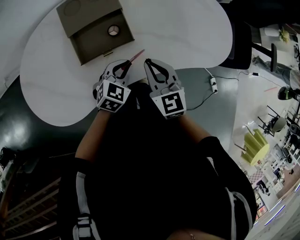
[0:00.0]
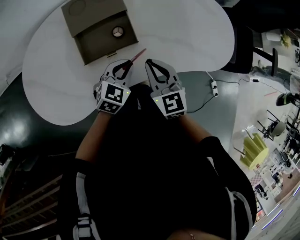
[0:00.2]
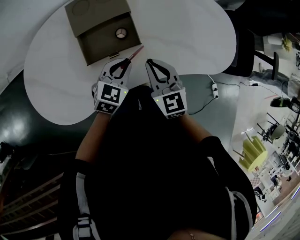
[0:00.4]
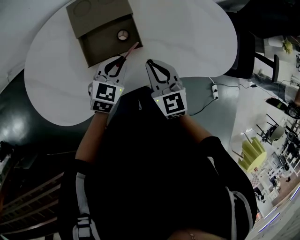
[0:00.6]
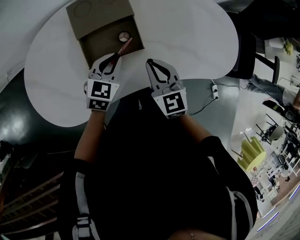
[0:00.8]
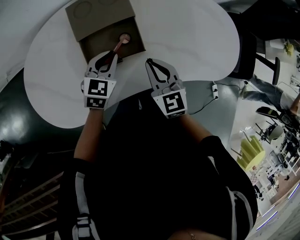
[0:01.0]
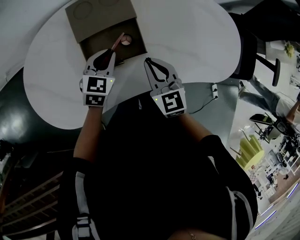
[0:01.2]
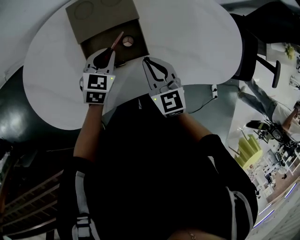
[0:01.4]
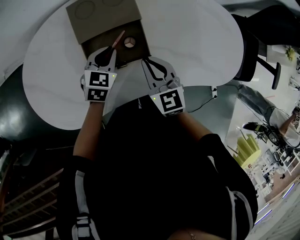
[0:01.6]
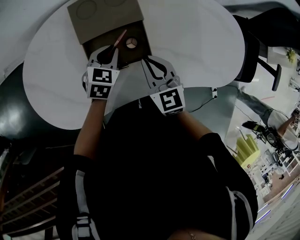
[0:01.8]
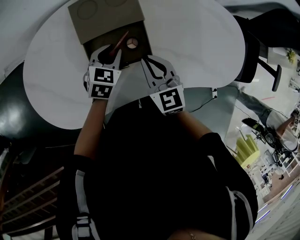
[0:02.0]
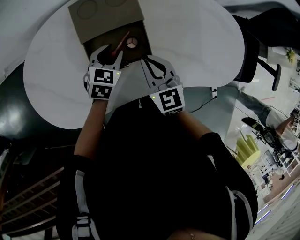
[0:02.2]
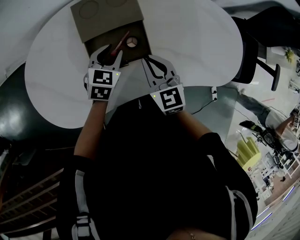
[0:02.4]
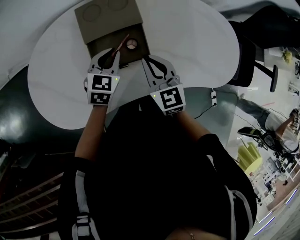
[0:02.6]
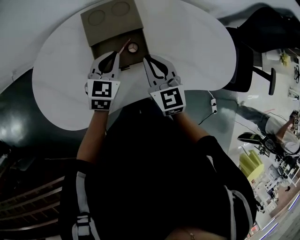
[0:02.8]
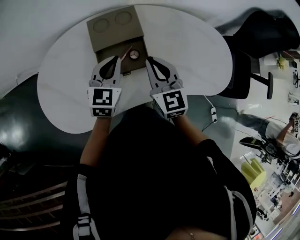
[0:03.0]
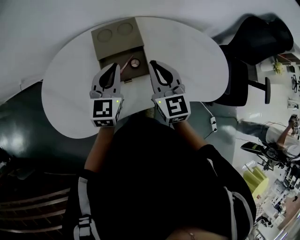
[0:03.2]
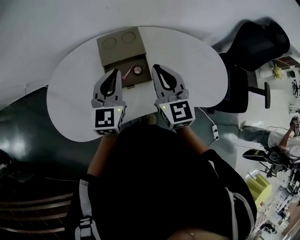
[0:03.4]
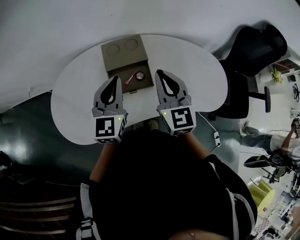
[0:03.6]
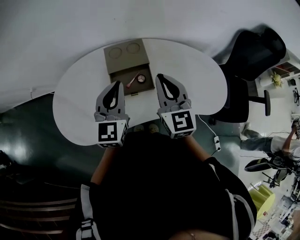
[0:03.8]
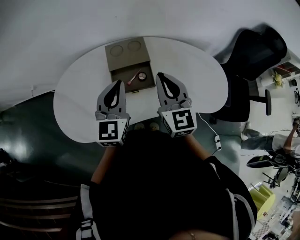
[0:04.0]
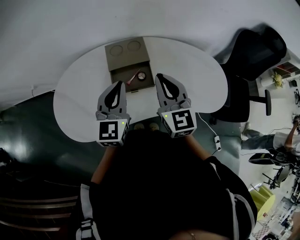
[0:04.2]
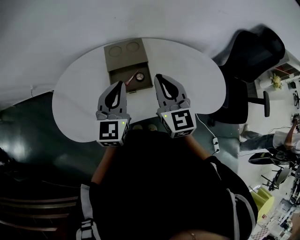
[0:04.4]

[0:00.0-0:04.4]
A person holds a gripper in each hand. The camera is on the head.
0.0 to 1.4 s: The left gripper travels forward and to the left by about 15 cm; the right gripper goes roughly 10 cm forward and to the left.
1.4 to 3.0 s: The two grippers go approximately 10 cm upward. The left gripper turns by approximately 20 degrees, and opens, then closes once more.
3.0 to 4.4 s: The two grippers go about 15 cm upward and backward. The left gripper changes its angle by about 20 degrees.

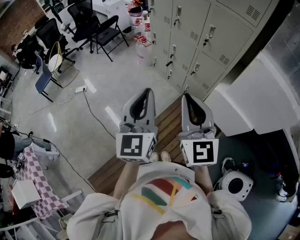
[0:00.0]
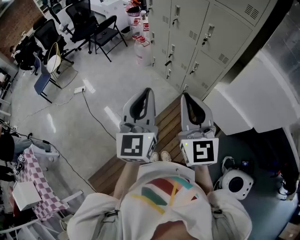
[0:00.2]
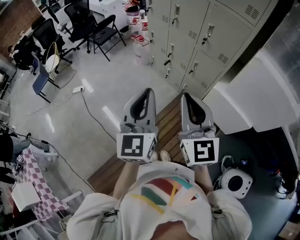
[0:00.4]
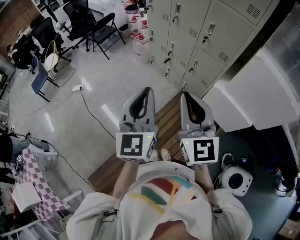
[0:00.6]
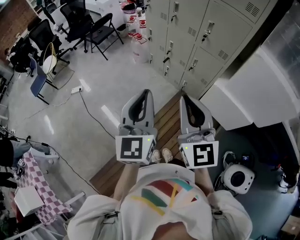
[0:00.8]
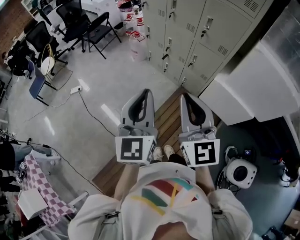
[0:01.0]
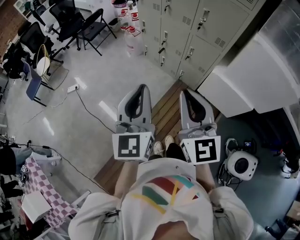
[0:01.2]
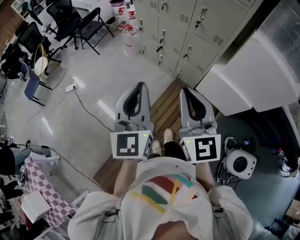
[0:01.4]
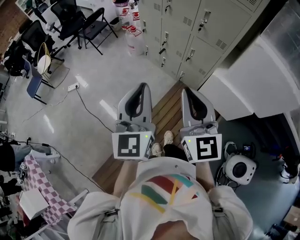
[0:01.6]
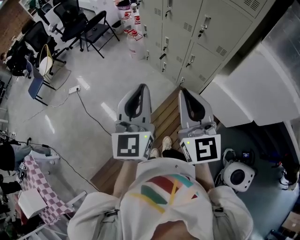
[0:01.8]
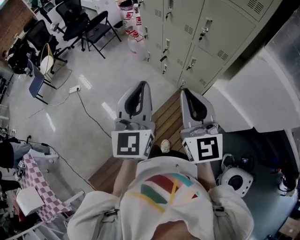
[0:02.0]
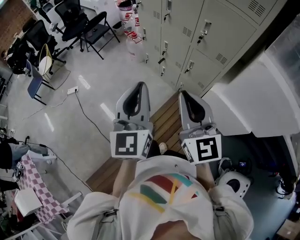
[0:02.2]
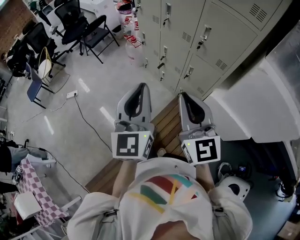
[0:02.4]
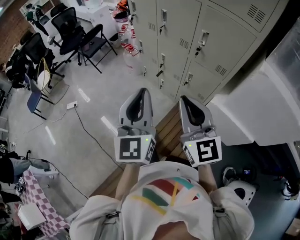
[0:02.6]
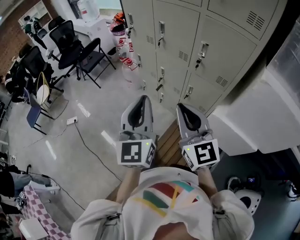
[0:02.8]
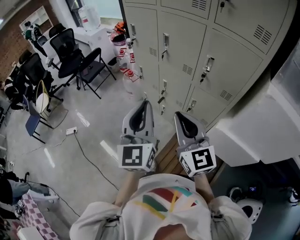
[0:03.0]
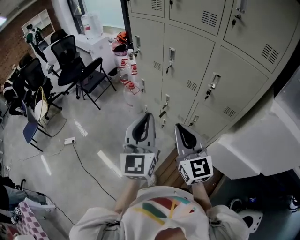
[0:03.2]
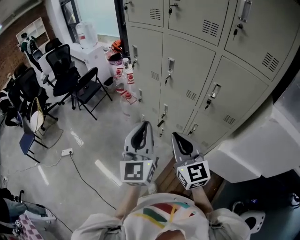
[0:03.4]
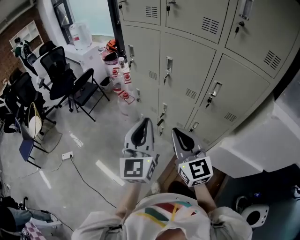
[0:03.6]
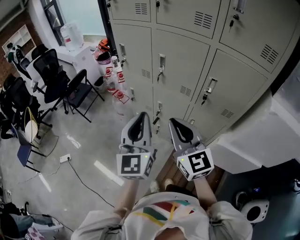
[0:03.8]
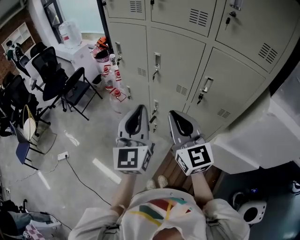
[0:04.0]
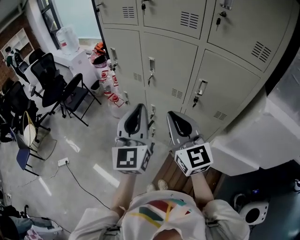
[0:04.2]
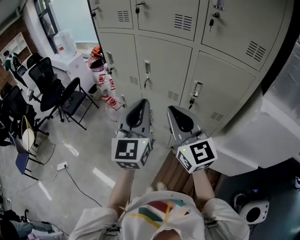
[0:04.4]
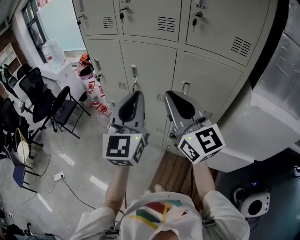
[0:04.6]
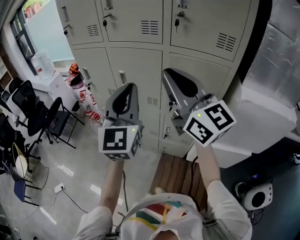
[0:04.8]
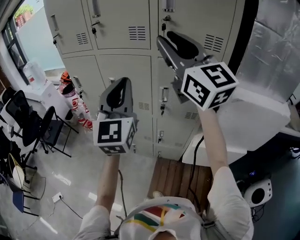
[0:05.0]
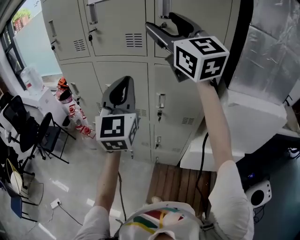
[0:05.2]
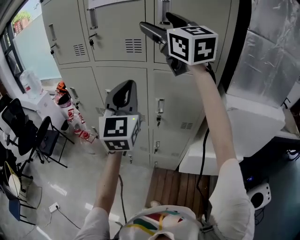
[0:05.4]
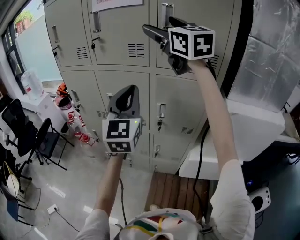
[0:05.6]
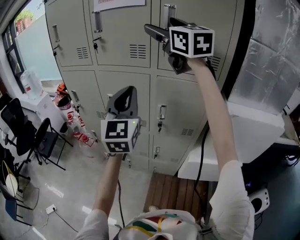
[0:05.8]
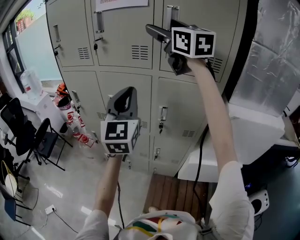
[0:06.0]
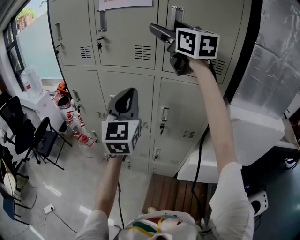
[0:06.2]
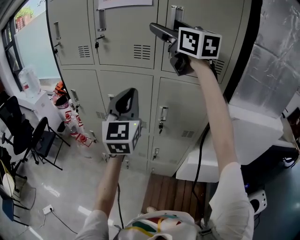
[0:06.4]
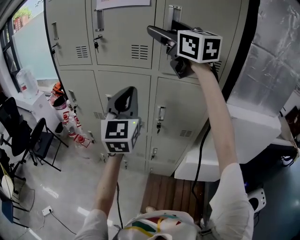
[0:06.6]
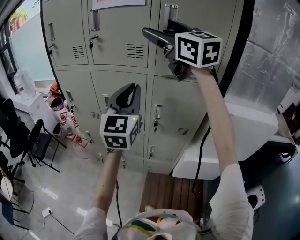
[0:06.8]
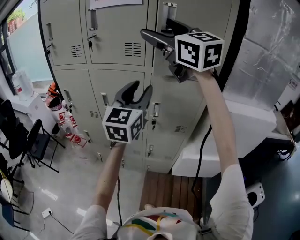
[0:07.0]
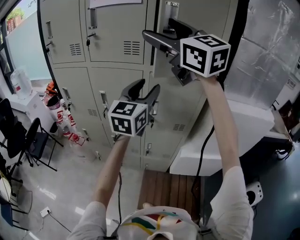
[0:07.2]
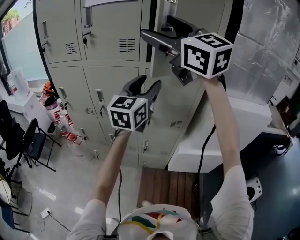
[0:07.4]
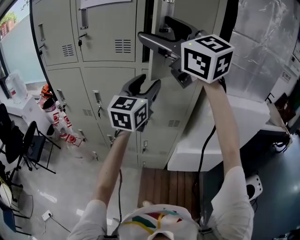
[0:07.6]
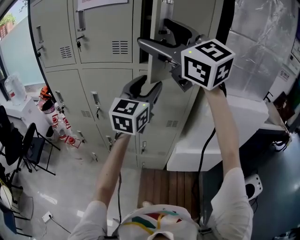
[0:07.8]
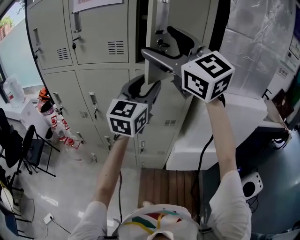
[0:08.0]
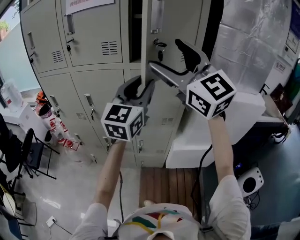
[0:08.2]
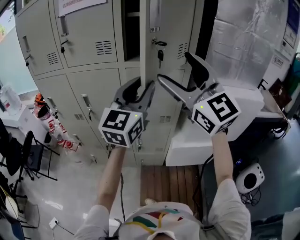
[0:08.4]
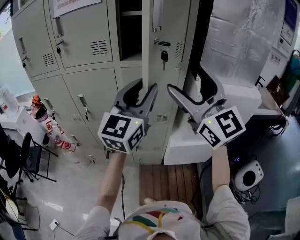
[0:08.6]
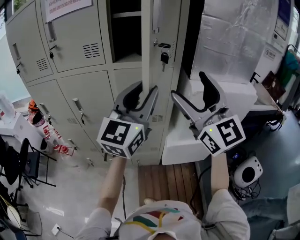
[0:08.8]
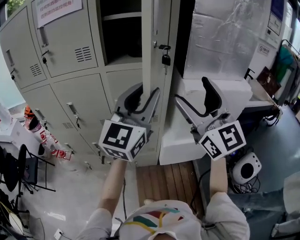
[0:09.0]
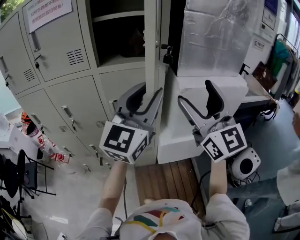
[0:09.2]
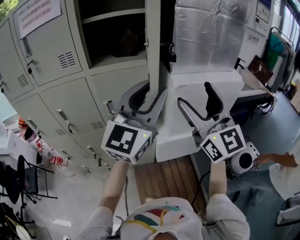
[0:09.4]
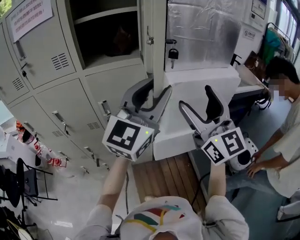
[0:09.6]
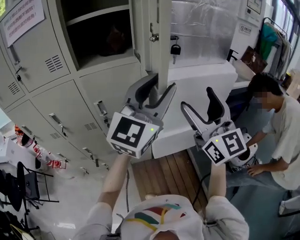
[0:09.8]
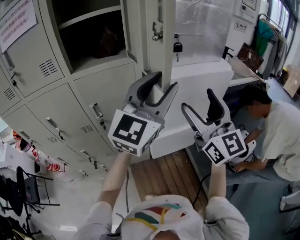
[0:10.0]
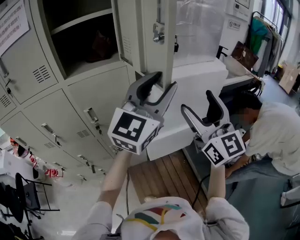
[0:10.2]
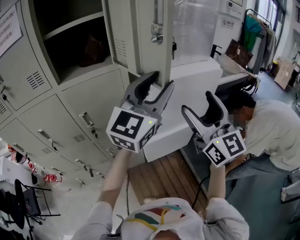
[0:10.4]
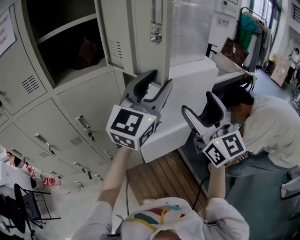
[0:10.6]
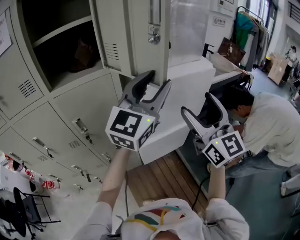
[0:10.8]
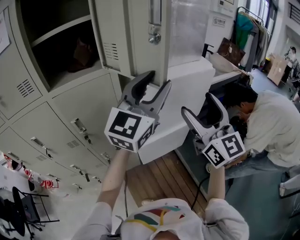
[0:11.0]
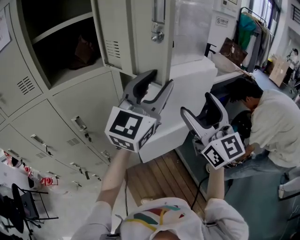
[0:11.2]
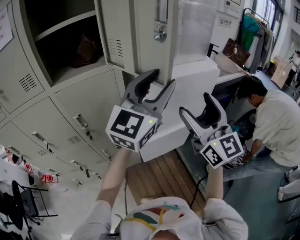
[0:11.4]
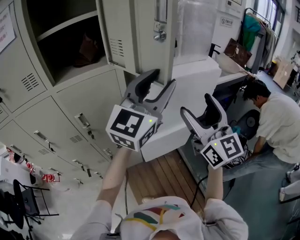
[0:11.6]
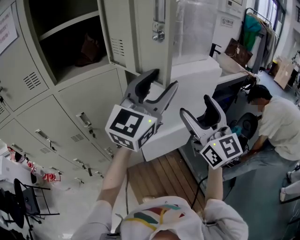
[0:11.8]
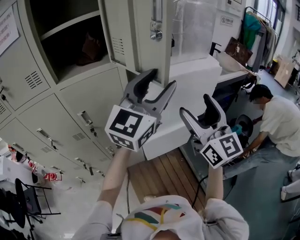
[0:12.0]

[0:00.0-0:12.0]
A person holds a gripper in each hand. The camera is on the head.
0.0 to 1.6 s: The grippers move only a little.
1.6 to 3.0 s: Both grippers move forward, roughly 25 cm.
3.0 to 4.4 s: The right gripper heads forward and upward, covering roughly 15 cm; the left gripper heads forward, covering roughly 15 cm.
4.4 to 6.0 s: The left gripper moves upward, forward and to the right, approximately 15 cm, while the right gripper heads upward and forward, covering some 35 cm, and opens its fingers.
6.0 to 7.6 s: The left gripper goes some 10 cm to the right, turns by some 30 degrees, and opens up, while the right gripper shifts about 15 cm backward.
7.6 to 9.0 s: The right gripper moves to the right, downward and backward, some 25 cm, and rotates approximately 30 degrees. The left gripper travels to the right and backward by approximately 15 cm.
9.0 to 10.4 s: The right gripper heads to the right and downward, covering some 15 cm, and rotates roughly 20 degrees; the left gripper is displaced to the right by roughly 15 cm, and changes its angle by some 20 degrees.
10.4 to 12.0 s: The grippers move only a little.

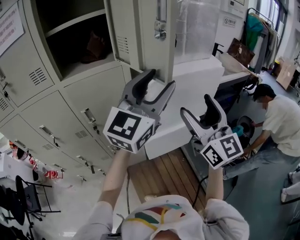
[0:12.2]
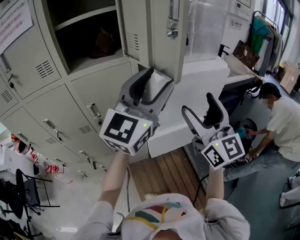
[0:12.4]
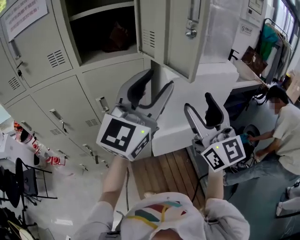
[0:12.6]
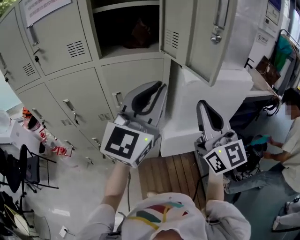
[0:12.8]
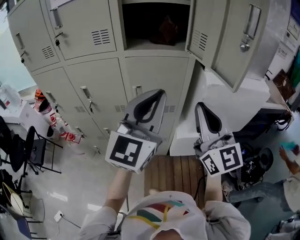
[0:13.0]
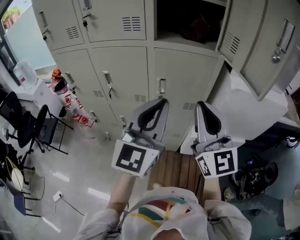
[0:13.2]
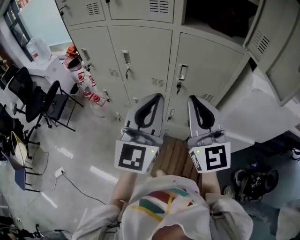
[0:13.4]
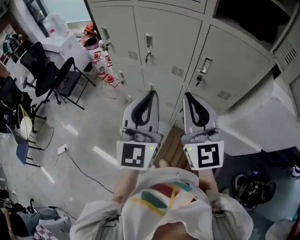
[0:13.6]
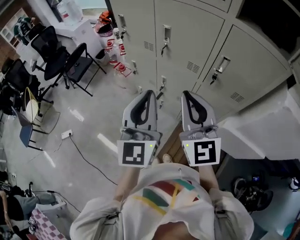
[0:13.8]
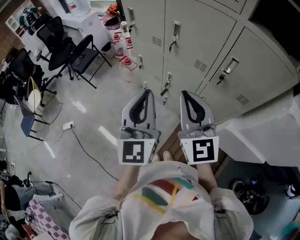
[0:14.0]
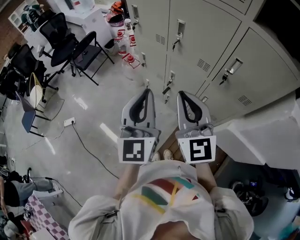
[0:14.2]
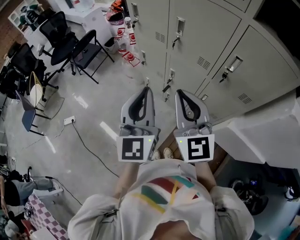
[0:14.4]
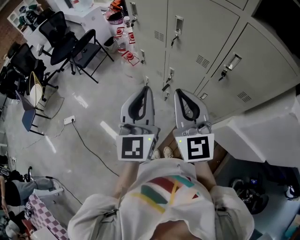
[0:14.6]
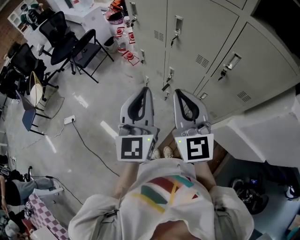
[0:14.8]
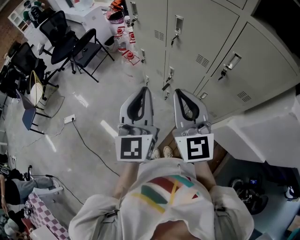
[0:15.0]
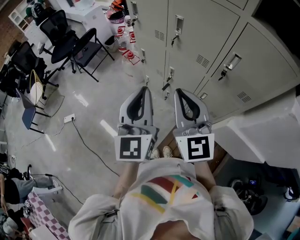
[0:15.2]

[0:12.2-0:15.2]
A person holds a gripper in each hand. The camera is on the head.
12.2 to 13.8 s: The pair of grippers is taken approximately 40 cm. The right gripper changes its angle by roughly 50 degrees, and closes its fingers. Meanwhile the left gripper rotates roughly 80 degrees, and closes up.
13.8 to 15.2 s: The grippers stay close to where they were, moving slightly.

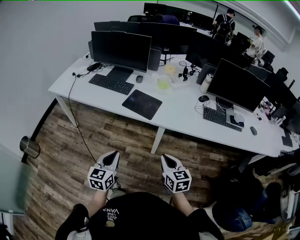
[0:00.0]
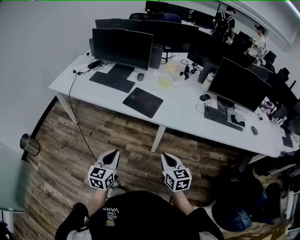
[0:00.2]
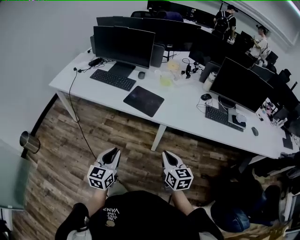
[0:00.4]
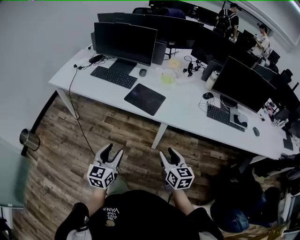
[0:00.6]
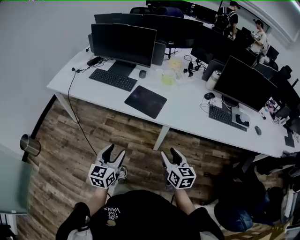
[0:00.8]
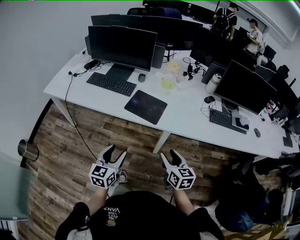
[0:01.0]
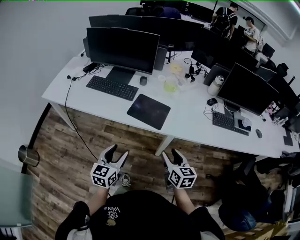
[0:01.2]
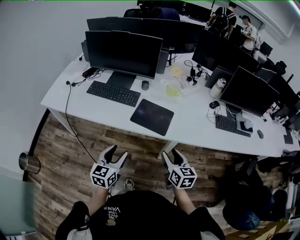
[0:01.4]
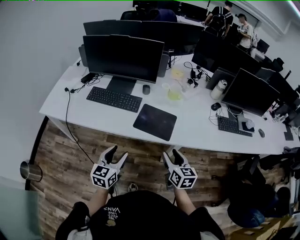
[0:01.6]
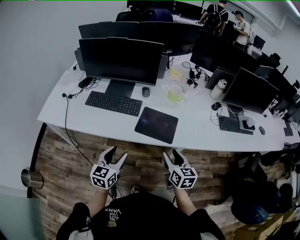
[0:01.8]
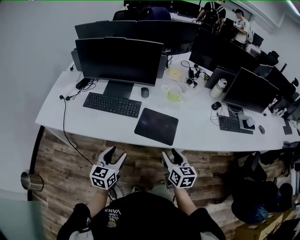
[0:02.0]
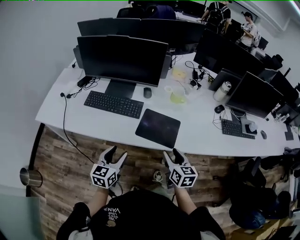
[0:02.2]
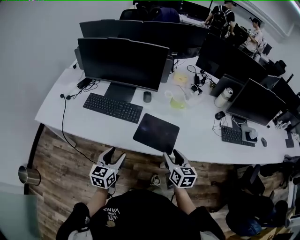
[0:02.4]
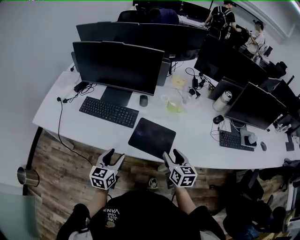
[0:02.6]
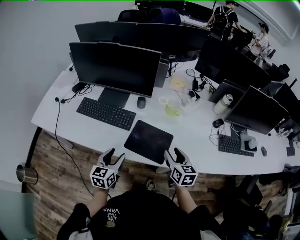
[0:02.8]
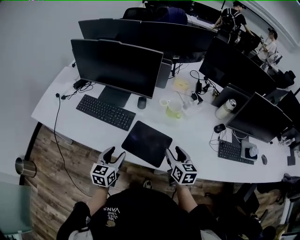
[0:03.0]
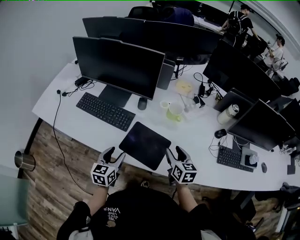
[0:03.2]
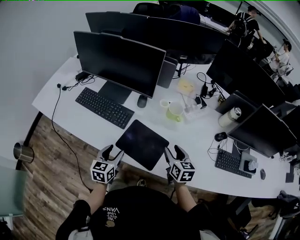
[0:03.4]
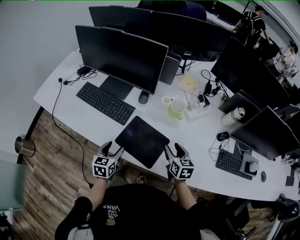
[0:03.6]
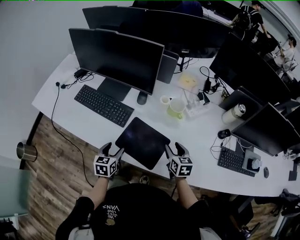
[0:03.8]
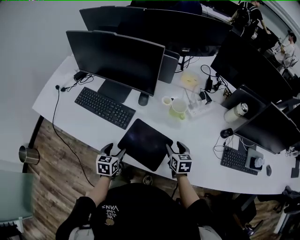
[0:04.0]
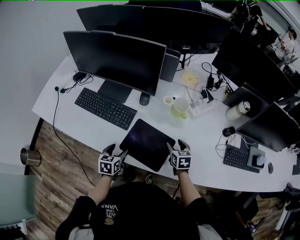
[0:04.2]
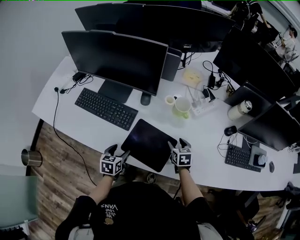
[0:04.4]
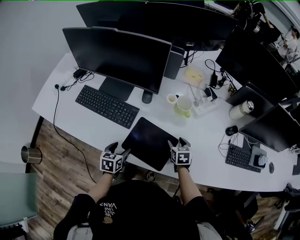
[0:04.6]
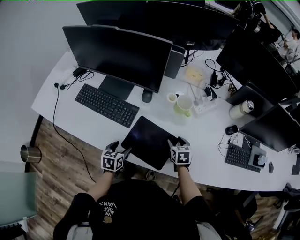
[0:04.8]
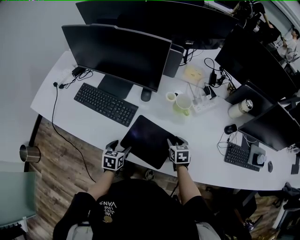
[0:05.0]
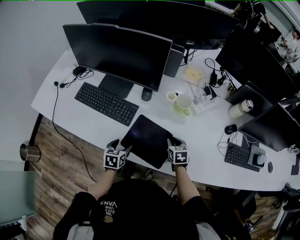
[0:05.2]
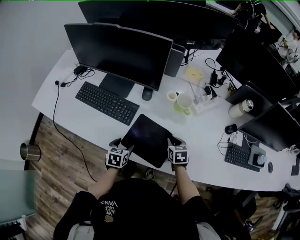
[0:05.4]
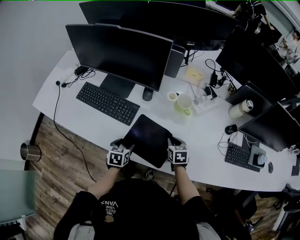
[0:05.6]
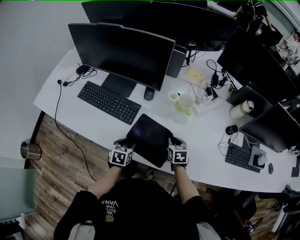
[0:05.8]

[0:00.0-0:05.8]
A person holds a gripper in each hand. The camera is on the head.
0.0 to 1.4 s: Both grippers travel together forward and to the left, roughly 20 cm. The left gripper opens; the right gripper opens up.
1.4 to 2.8 s: The two grippers go about 20 cm forward.
2.8 to 4.4 s: Both grippers travel together downward and forward, some 15 cm. The right gripper rotates about 20 degrees, while the left gripper swivels roughly 30 degrees.
4.4 to 5.8 s: The right gripper closes its fingers.
